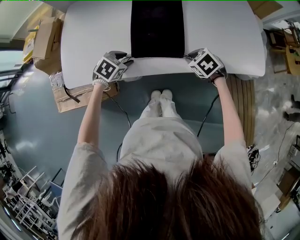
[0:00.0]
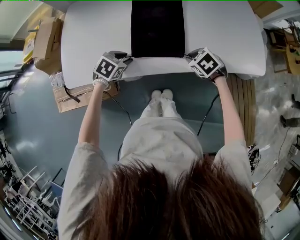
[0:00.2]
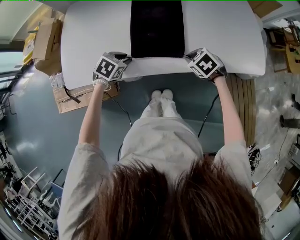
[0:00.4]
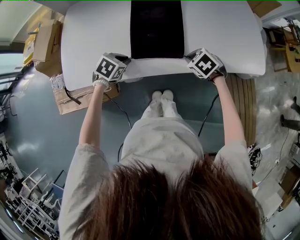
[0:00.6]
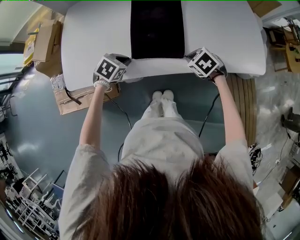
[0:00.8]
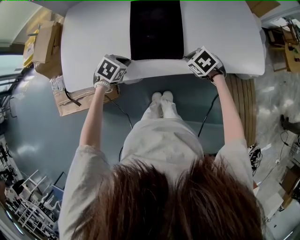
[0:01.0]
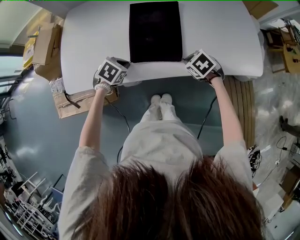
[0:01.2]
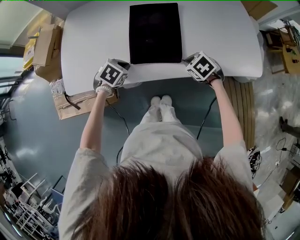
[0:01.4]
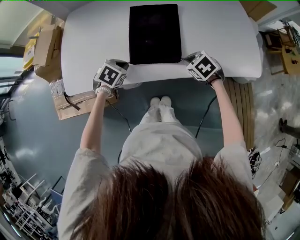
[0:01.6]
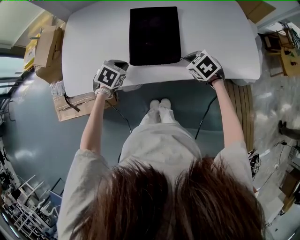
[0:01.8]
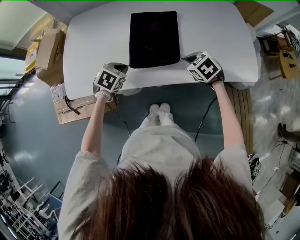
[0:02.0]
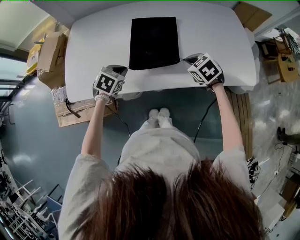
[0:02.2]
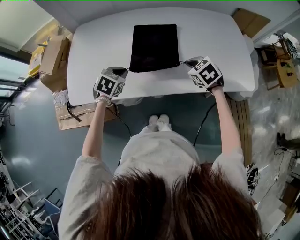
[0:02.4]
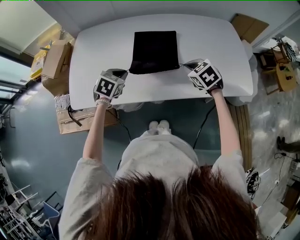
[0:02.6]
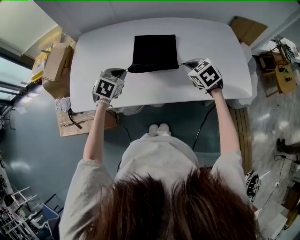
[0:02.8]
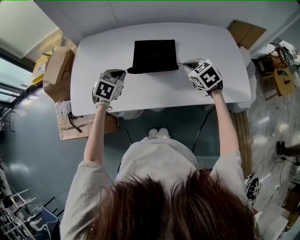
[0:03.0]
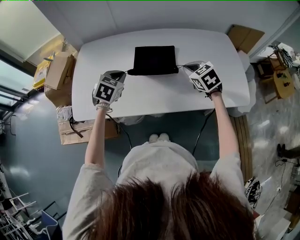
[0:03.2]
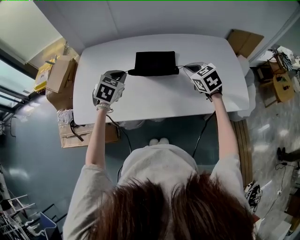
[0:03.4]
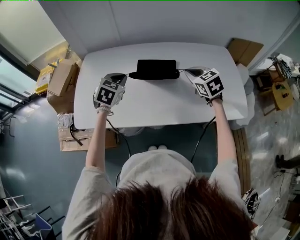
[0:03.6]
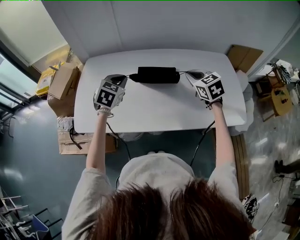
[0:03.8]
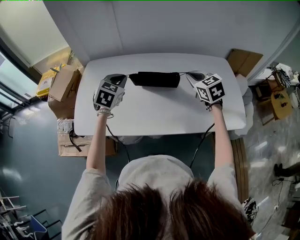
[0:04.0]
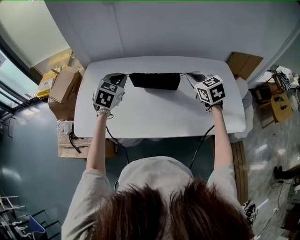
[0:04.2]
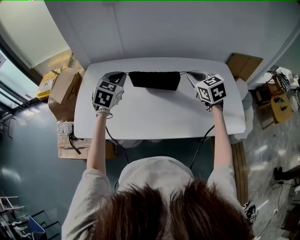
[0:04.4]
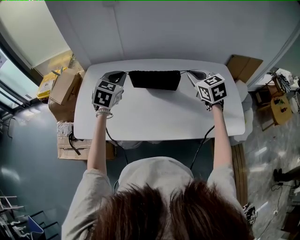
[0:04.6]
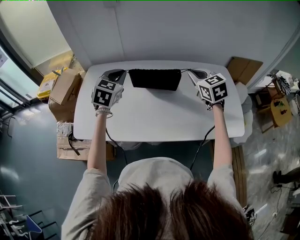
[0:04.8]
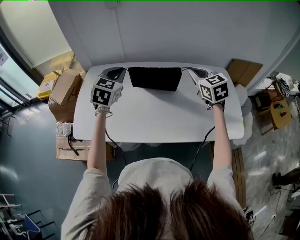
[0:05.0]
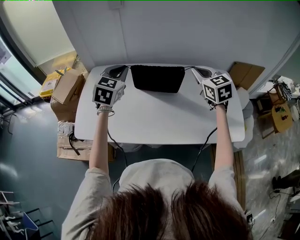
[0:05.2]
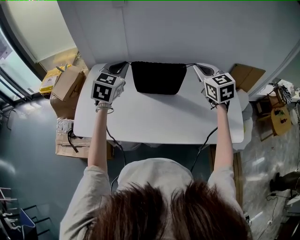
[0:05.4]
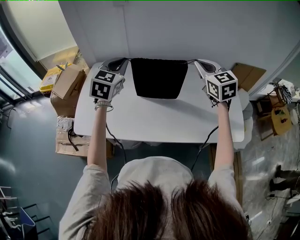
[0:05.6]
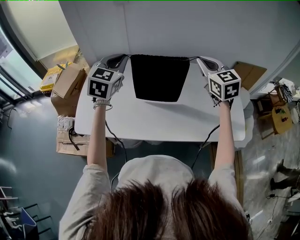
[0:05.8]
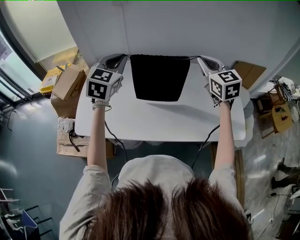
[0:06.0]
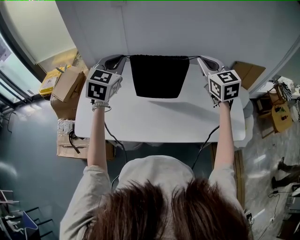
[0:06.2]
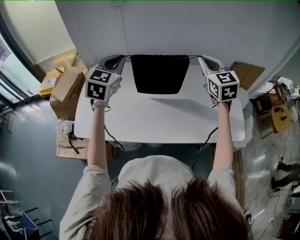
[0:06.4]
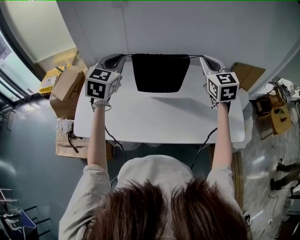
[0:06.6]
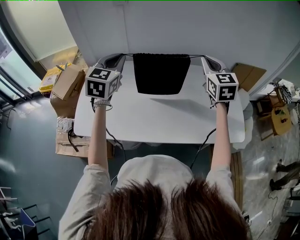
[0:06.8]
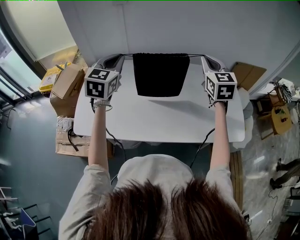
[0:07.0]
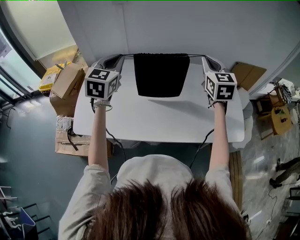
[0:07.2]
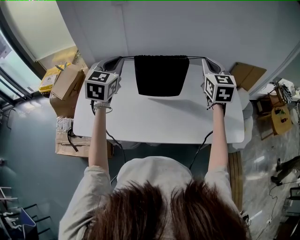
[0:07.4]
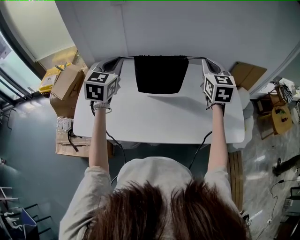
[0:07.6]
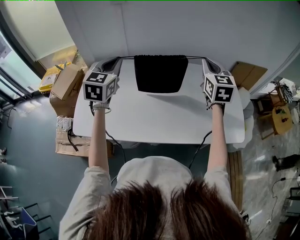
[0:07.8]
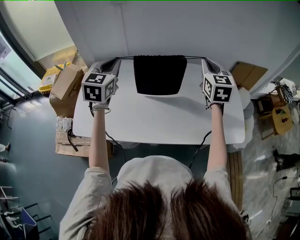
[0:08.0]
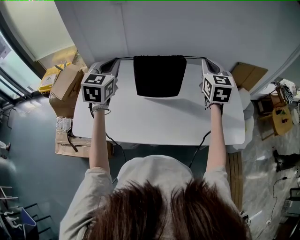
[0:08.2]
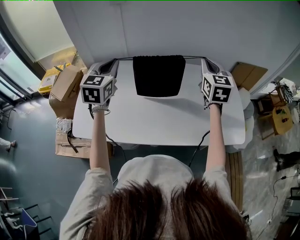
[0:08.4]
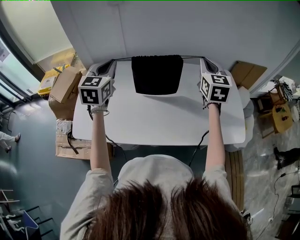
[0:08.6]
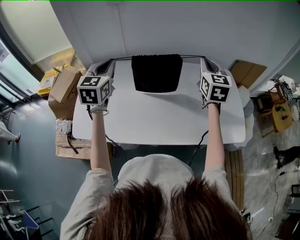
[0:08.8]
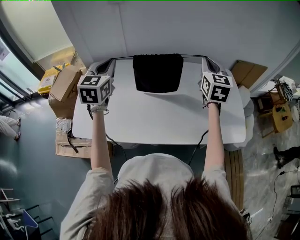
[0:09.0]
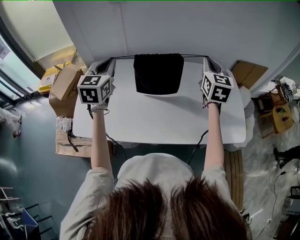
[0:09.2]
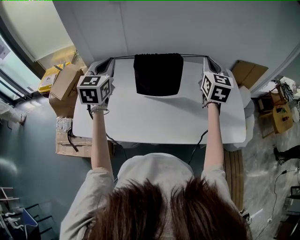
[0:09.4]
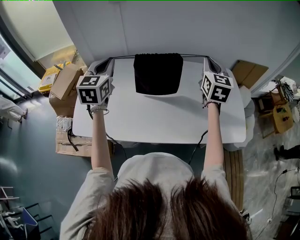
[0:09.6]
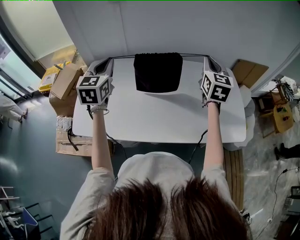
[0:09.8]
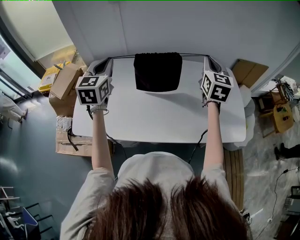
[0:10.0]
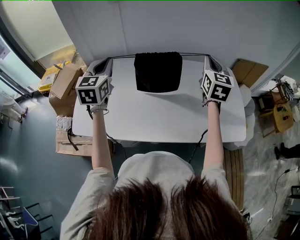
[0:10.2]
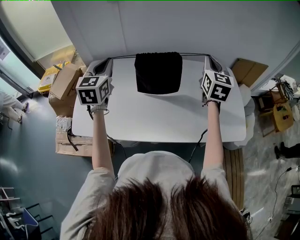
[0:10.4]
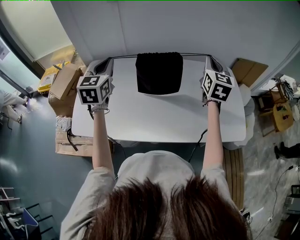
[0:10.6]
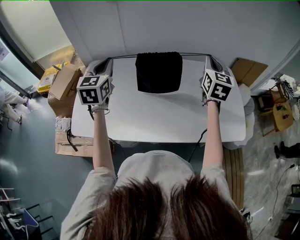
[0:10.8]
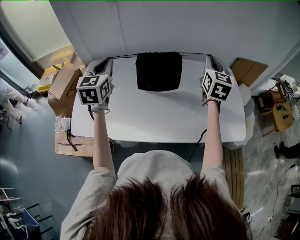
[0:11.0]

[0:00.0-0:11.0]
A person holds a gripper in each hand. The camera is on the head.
0:00.0 to 0:01.6: The left gripper closes its fingers.
0:01.6 to 0:03.2: The two grippers go some 15 cm upward and forward. The left gripper turns by approximately 20 degrees; the right gripper turns by roughly 20 degrees.
0:03.2 to 0:04.8: Both grippers move upward and forward, some 15 cm. The left gripper turns by some 20 degrees.
0:04.8 to 0:06.2: The grippers both shift upward by about 10 cm.
0:06.2 to 0:07.8: The grippers stay close to where they were, moving slightly.
0:07.8 to 0:11.0: There are only small adjustments of the grippers.

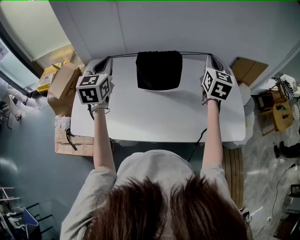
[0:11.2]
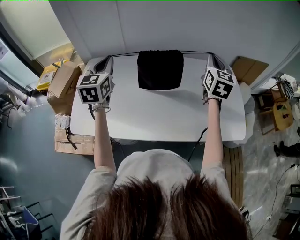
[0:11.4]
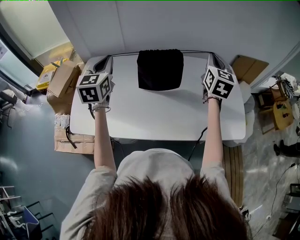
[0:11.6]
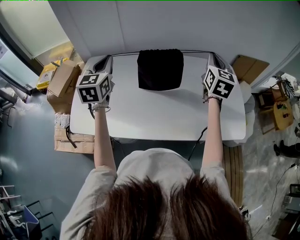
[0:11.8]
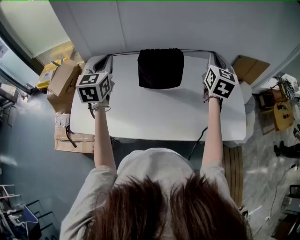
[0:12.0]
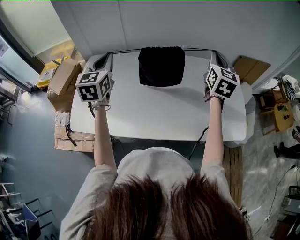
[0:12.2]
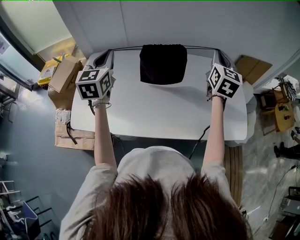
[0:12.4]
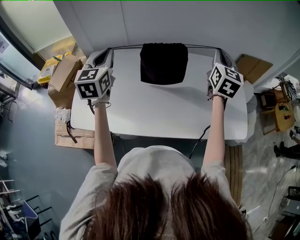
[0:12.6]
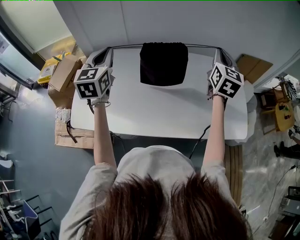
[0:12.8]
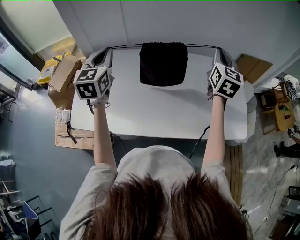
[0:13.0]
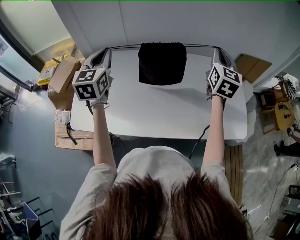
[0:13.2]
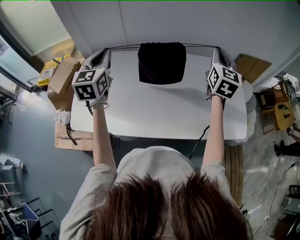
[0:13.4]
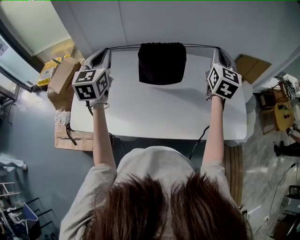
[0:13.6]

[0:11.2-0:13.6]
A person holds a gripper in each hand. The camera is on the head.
0:11.2 to 0:12.4: Both grippers stay about where they are.
0:12.4 to 0:13.6: The two grippers keep their place.

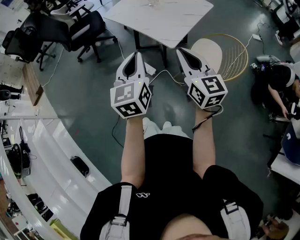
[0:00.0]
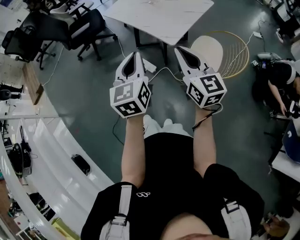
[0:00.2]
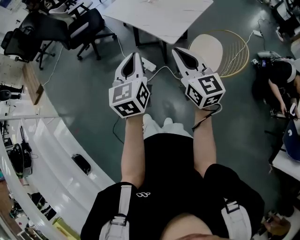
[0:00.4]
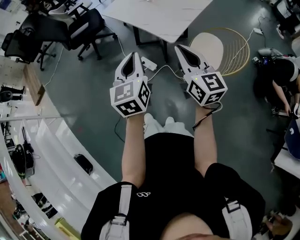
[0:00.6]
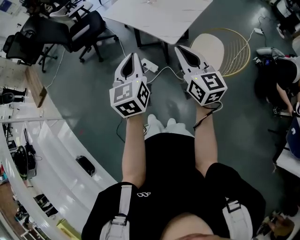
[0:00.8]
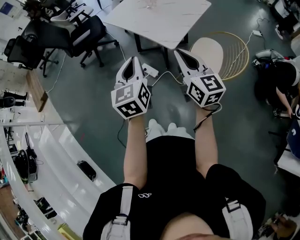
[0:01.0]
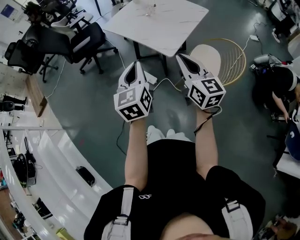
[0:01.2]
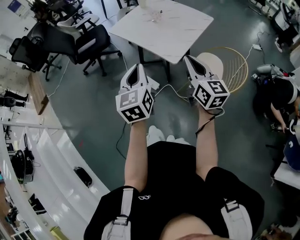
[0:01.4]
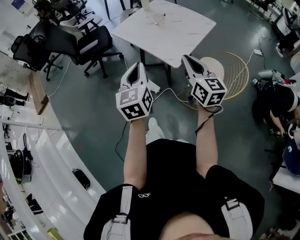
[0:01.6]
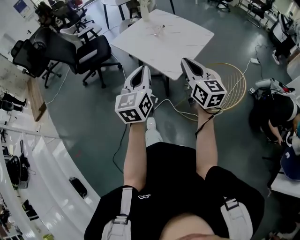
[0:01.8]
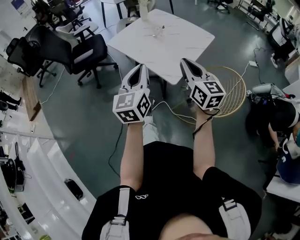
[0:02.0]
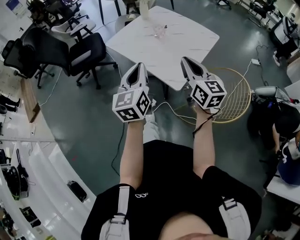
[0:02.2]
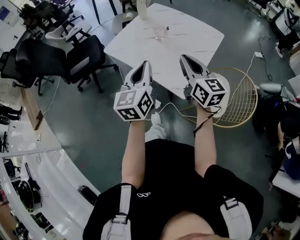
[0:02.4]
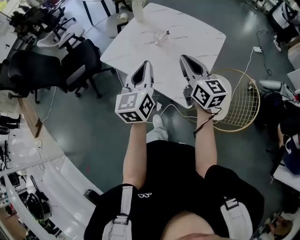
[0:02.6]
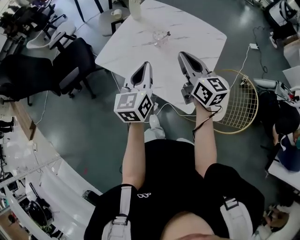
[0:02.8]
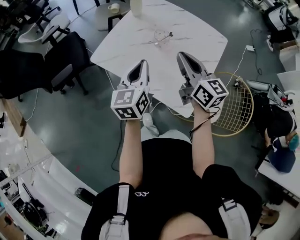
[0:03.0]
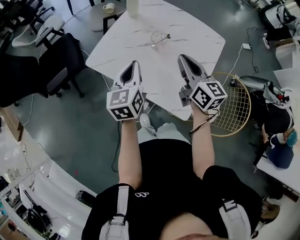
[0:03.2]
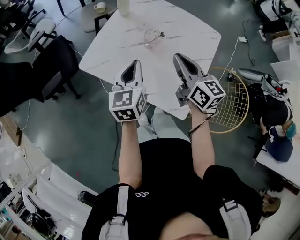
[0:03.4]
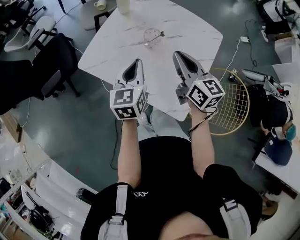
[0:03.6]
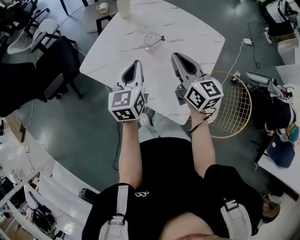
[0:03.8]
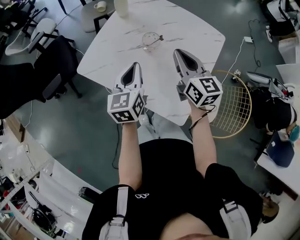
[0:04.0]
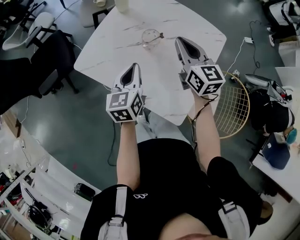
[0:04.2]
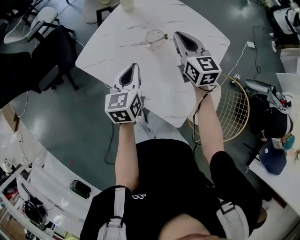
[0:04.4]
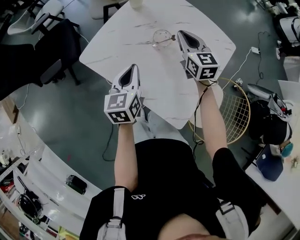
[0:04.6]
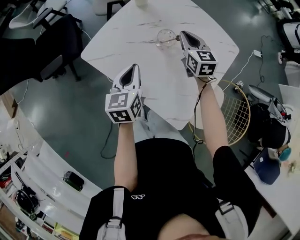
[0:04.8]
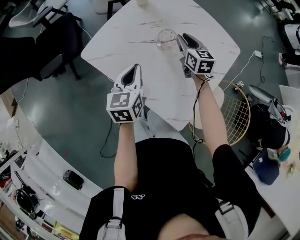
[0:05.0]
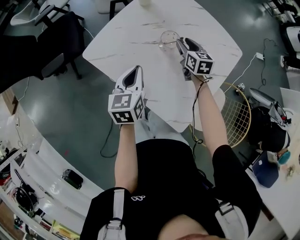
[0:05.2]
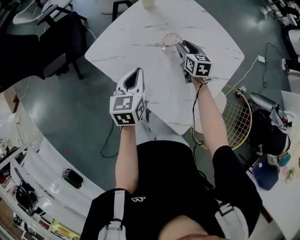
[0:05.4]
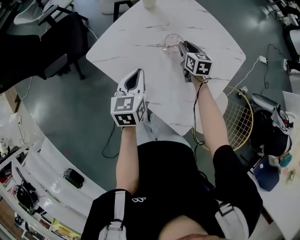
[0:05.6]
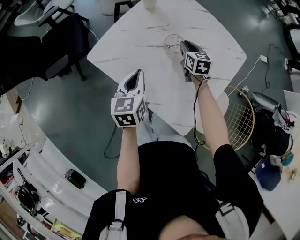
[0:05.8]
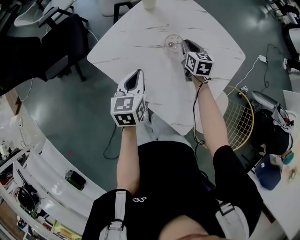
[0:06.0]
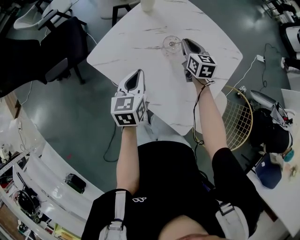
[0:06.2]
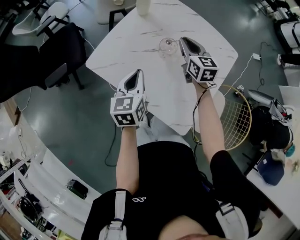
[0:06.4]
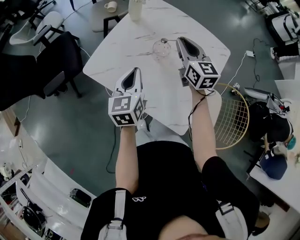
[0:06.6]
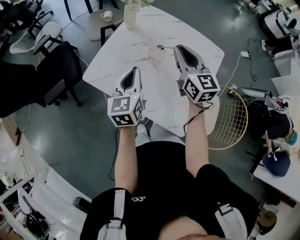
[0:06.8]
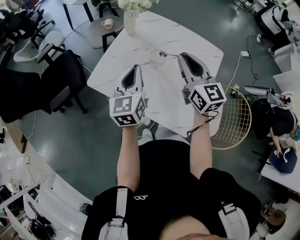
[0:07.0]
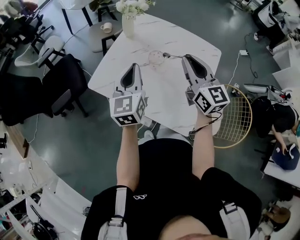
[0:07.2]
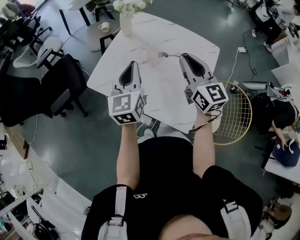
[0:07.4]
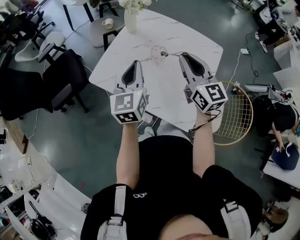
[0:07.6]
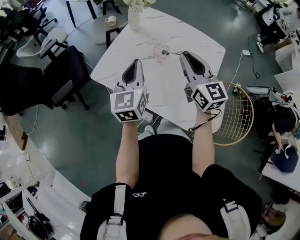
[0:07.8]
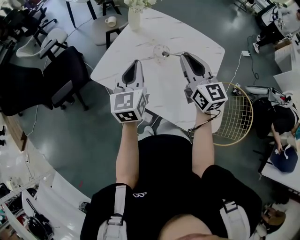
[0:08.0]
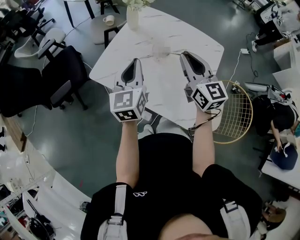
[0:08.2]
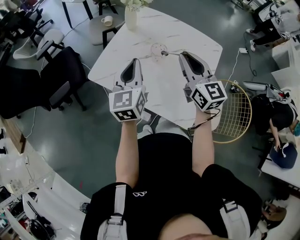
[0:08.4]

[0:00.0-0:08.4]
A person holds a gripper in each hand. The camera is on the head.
0:00.0 to 0:01.4: The right gripper ends up some 5 cm from where it was.
0:01.4 to 0:02.8: The two grippers travel together, forward, roughly 40 cm. The left gripper swivels roughly 20 degrees.
0:02.8 to 0:04.2: The right gripper shifts roughly 15 cm forward, while the left gripper moves forward and downward, some 15 cm.
0:04.2 to 0:05.6: The right gripper moves downward and forward, roughly 20 cm, changes its angle by some 20 degrees, and opens up, while the left gripper goes roughly 5 cm to the left.
0:05.6 to 0:07.0: The right gripper moves upward and backward, approximately 30 cm, and tilts its fingers approximately 30 degrees upward; the left gripper shifts approximately 10 cm upward, and swivels some 20 degrees.
0:07.0 to 0:08.4: The grippers stay close to where they were, moving slightly.

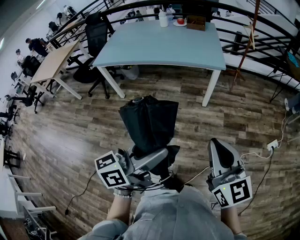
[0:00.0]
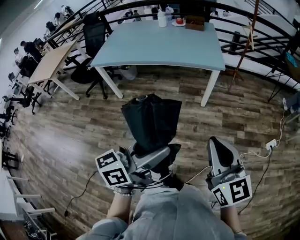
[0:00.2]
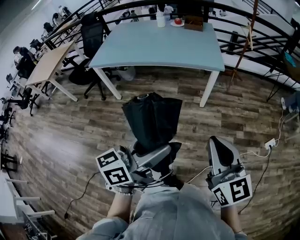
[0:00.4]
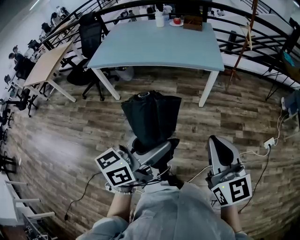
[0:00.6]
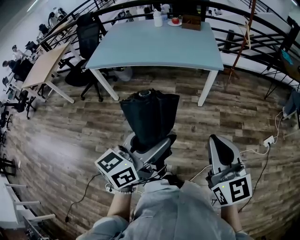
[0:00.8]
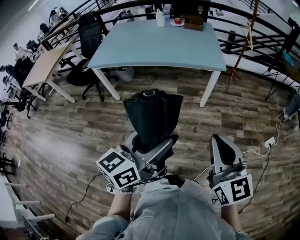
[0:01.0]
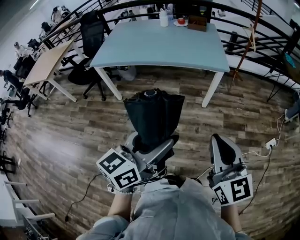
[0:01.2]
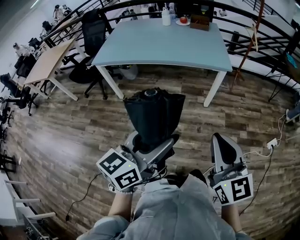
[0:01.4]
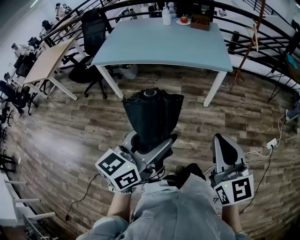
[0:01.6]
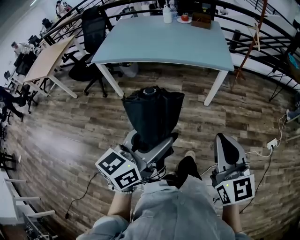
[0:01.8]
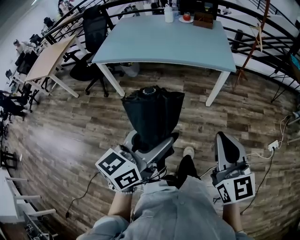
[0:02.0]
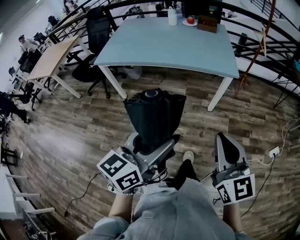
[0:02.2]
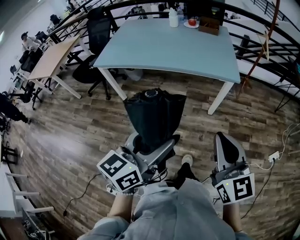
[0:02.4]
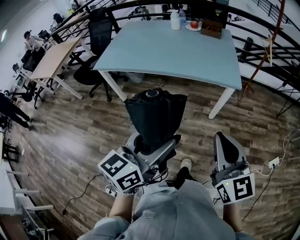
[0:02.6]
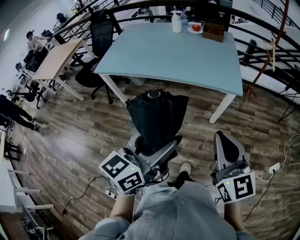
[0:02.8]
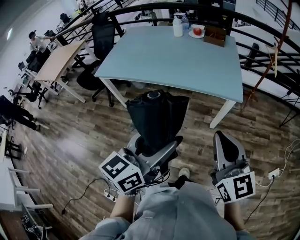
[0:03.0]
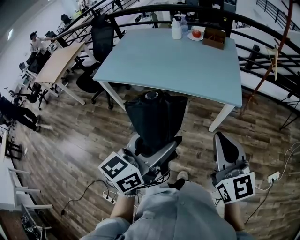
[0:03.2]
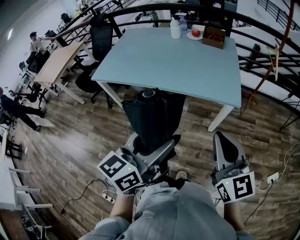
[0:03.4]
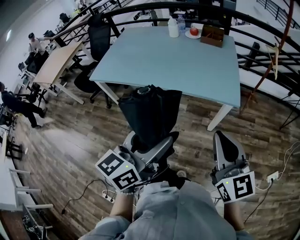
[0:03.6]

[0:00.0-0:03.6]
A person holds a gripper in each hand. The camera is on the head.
0:00.0 to 0:01.8: The left gripper goes some 10 cm to the left and forward, and changes its angle by roughly 20 degrees; the right gripper heads to the left, covering roughly 10 cm.
0:01.8 to 0:03.6: The grippers both shift forward by roughly 25 cm.
